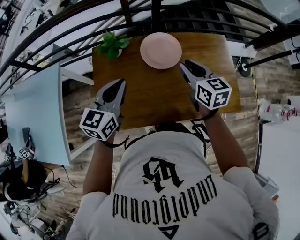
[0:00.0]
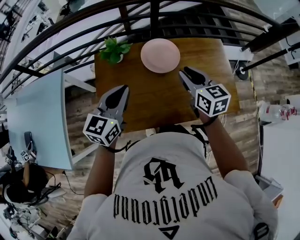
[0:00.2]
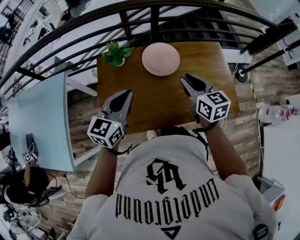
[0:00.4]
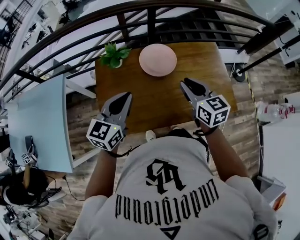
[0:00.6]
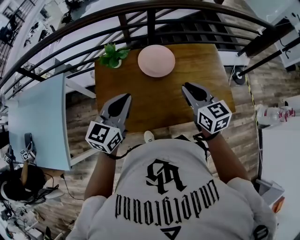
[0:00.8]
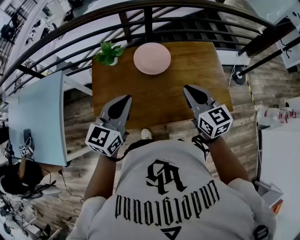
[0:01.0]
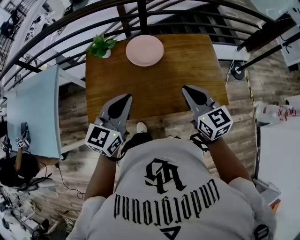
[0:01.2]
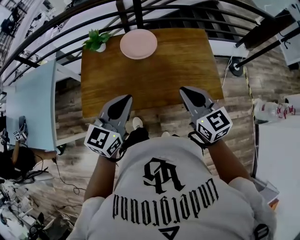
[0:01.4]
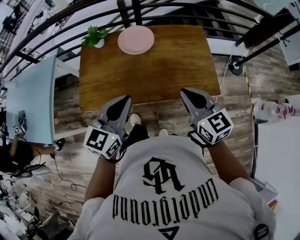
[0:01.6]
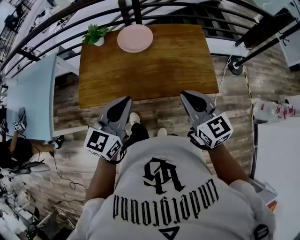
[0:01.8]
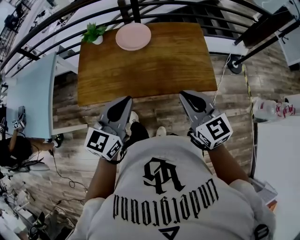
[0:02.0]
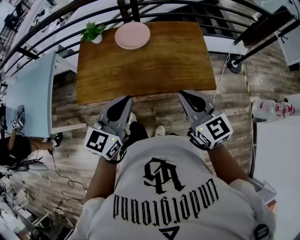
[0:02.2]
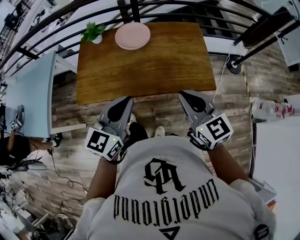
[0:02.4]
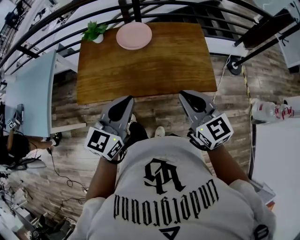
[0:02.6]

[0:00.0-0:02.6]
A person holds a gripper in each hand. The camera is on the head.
0:00.0 to 0:01.2: The two grippers go some 20 cm backward and to the right. The right gripper closes.
0:01.2 to 0:02.6: The two grippers go about 15 cm backward and to the right.

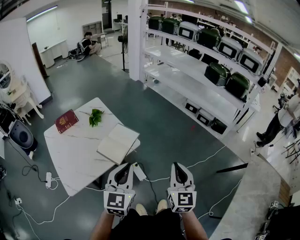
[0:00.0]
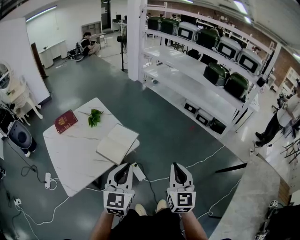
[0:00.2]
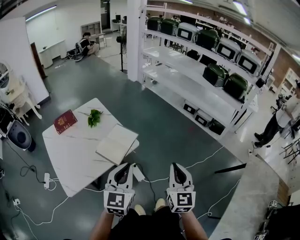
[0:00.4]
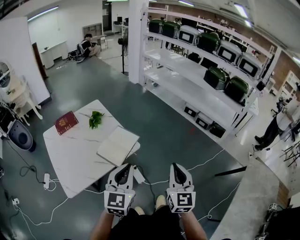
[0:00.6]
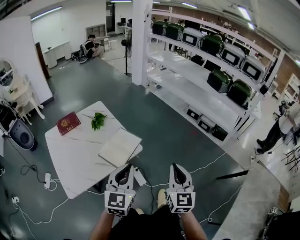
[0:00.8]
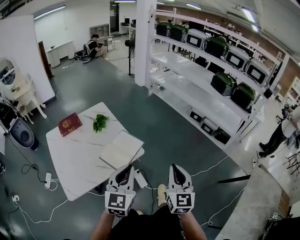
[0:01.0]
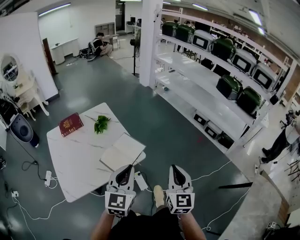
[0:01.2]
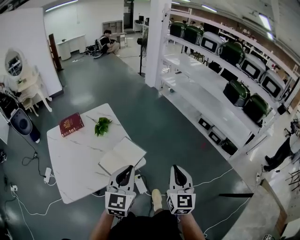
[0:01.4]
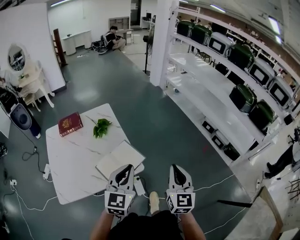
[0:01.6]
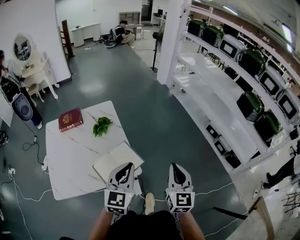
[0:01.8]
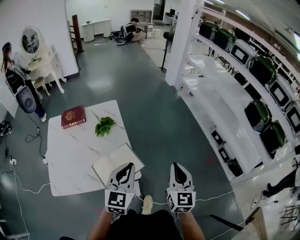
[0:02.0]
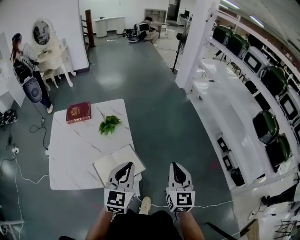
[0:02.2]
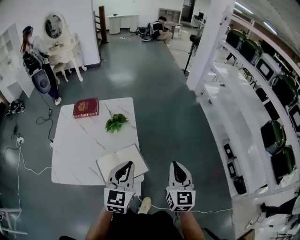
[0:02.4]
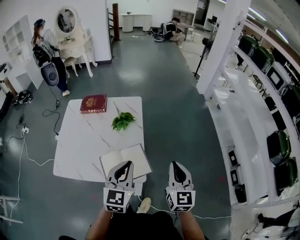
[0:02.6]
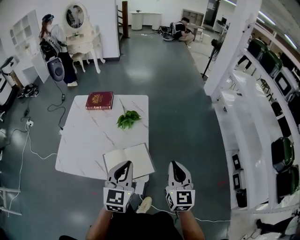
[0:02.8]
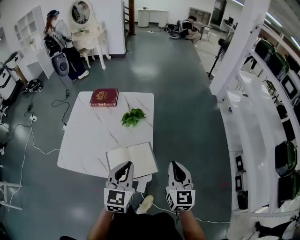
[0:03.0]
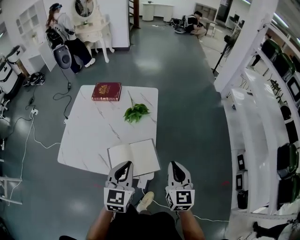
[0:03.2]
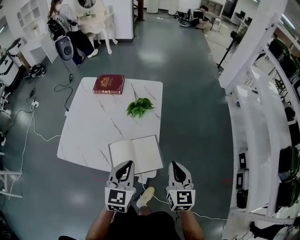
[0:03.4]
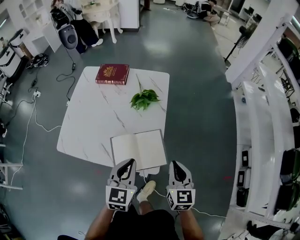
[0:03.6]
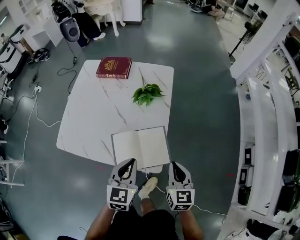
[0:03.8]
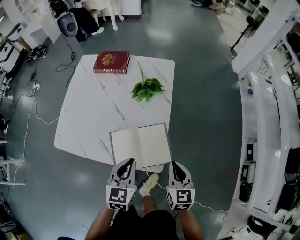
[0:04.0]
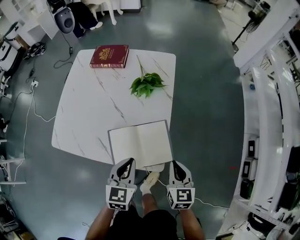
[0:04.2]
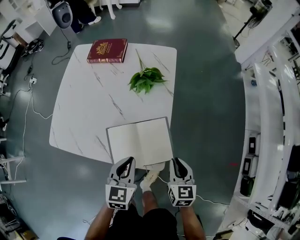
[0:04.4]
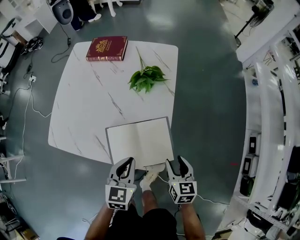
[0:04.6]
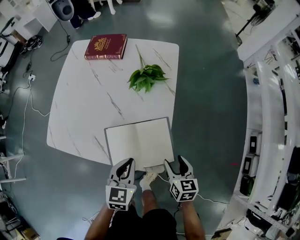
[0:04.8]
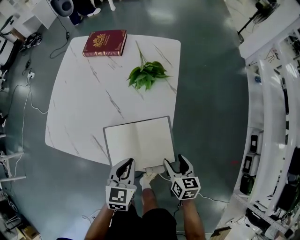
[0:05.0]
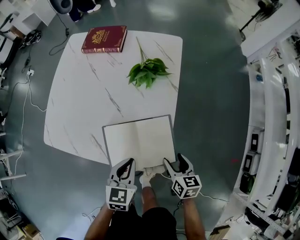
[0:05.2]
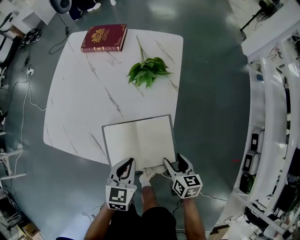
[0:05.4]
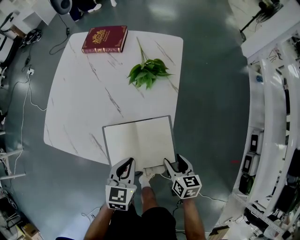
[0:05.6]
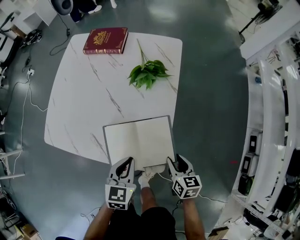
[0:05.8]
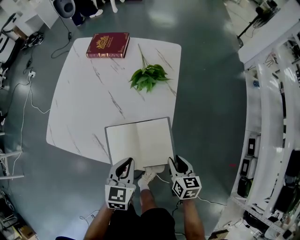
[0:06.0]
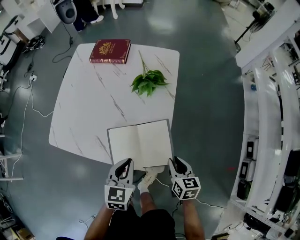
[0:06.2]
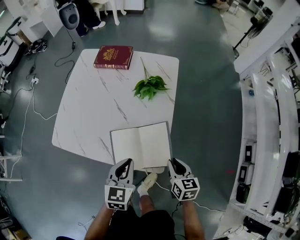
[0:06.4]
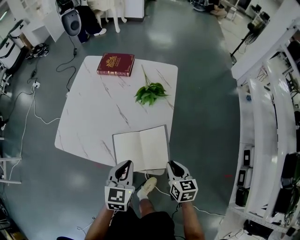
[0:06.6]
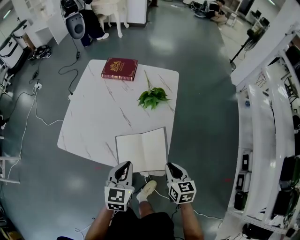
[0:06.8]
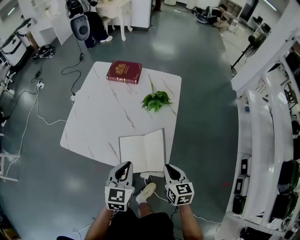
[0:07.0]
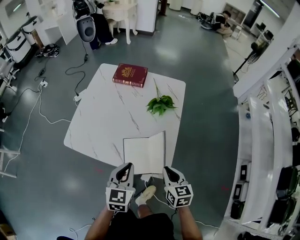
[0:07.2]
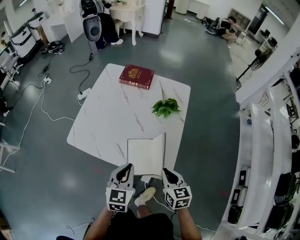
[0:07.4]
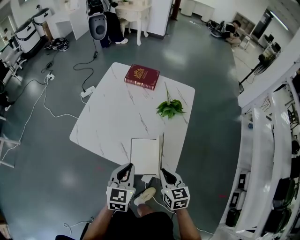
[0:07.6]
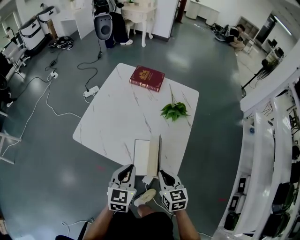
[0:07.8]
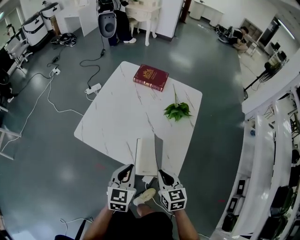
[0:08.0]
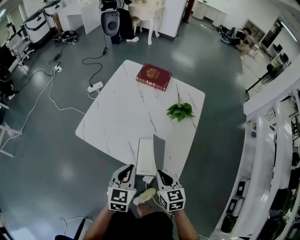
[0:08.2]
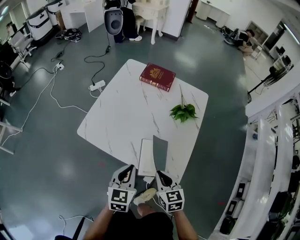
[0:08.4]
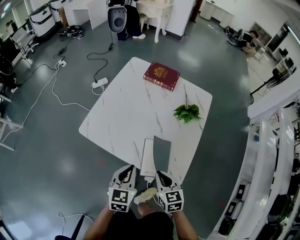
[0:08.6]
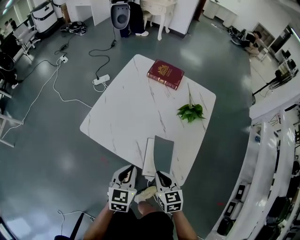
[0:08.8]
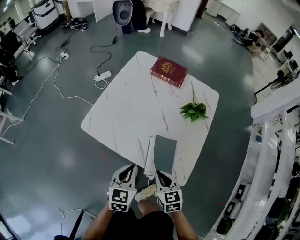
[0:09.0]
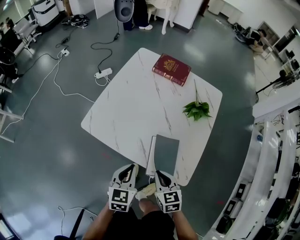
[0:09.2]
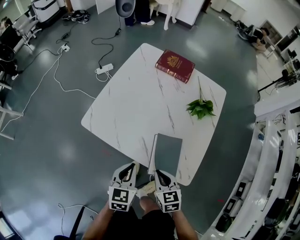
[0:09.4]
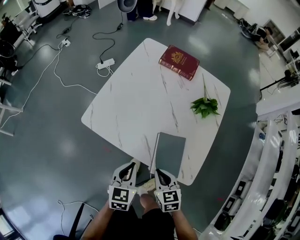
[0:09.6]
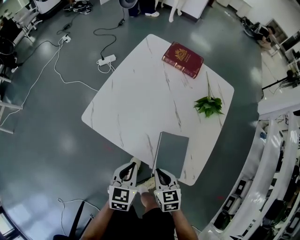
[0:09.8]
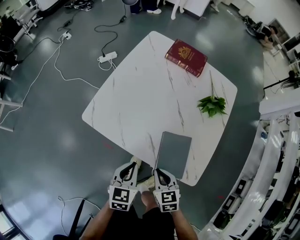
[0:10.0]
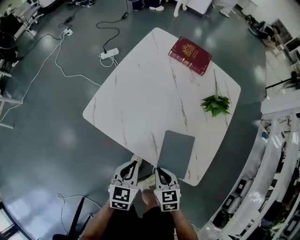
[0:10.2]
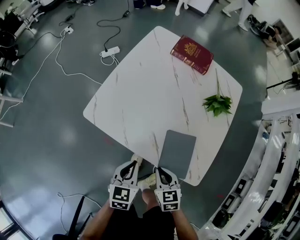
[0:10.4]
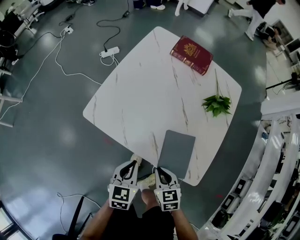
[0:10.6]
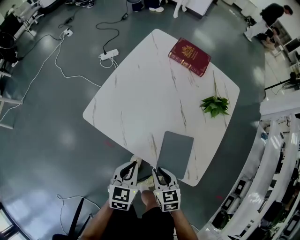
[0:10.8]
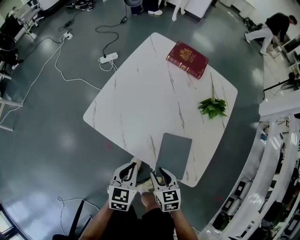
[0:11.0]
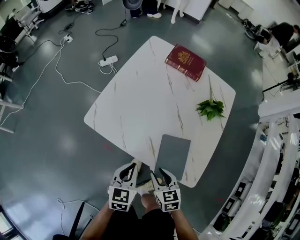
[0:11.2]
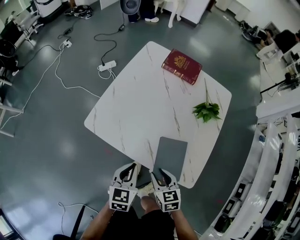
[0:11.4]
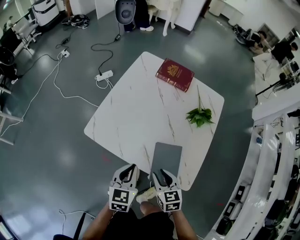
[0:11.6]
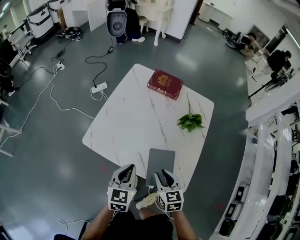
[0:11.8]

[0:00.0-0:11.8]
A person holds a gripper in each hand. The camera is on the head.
0:00.0 to 0:01.4: Both grippers move forward, some 15 cm.
0:01.4 to 0:03.0: The left gripper ends up approximately 20 cm from where it was, and changes its angle by roughly 40 degrees, while the right gripper shifts by some 30 cm, and rotates roughly 40 degrees.
0:03.0 to 0:04.4: The two grippers go about 20 cm downward. The right gripper turns by some 20 degrees.
0:04.4 to 0:06.0: The right gripper goes roughly 5 cm downward, and opens up.
0:06.0 to 0:07.4: Both grippers travel together upward and to the left, approximately 15 cm. The right gripper closes up.
0:07.4 to 0:08.8: Both grippers travel together to the left, approximately 10 cm.
0:08.8 to 0:10.4: Both grippers move downward and to the left, approximately 10 cm.
0:10.4 to 0:11.8: The right gripper shifts roughly 15 cm upward and to the right, and opens up. Meanwhile the left gripper goes approximately 15 cm upward.

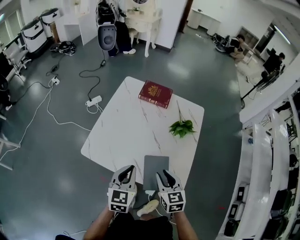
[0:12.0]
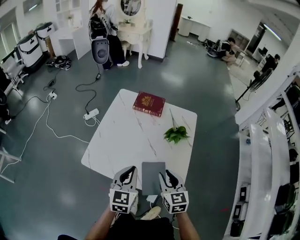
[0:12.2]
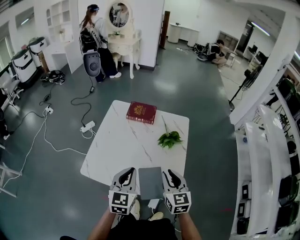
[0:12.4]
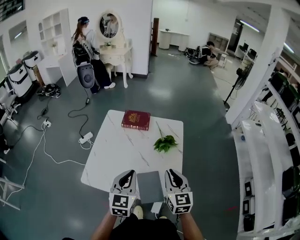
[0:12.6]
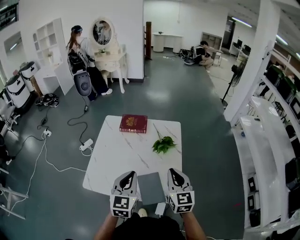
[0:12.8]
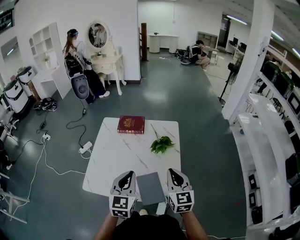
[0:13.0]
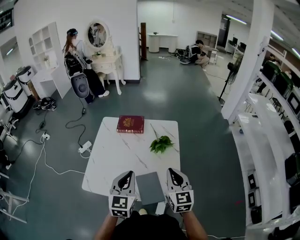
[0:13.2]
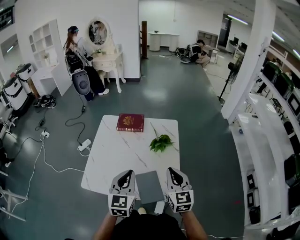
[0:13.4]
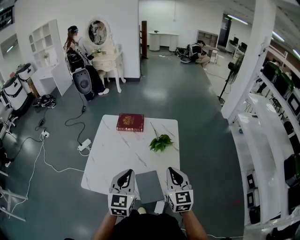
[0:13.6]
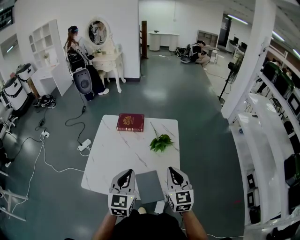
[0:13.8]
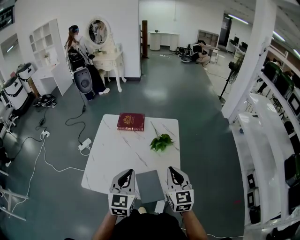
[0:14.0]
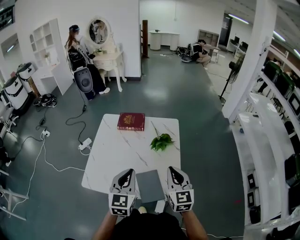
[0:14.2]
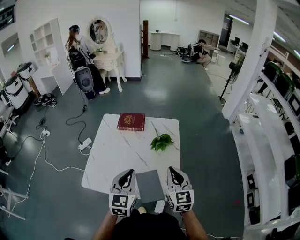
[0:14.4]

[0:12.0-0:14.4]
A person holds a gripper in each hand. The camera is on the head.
0:12.0 to 0:13.2: Both grippers travel together upward and to the right, about 15 cm. The right gripper changes its angle by about 30 degrees, and closes.
0:13.2 to 0:14.4: The two grippers keep their place.

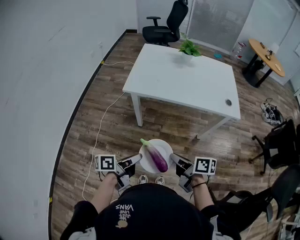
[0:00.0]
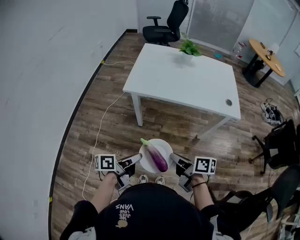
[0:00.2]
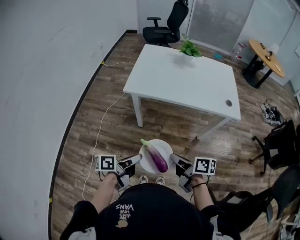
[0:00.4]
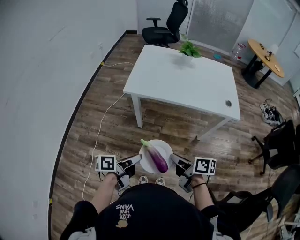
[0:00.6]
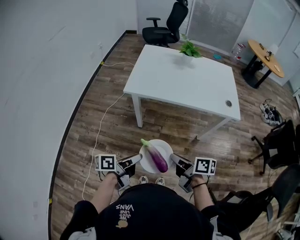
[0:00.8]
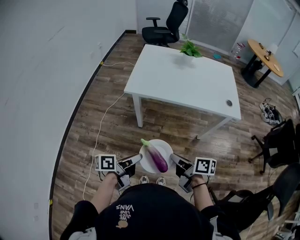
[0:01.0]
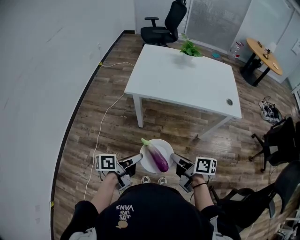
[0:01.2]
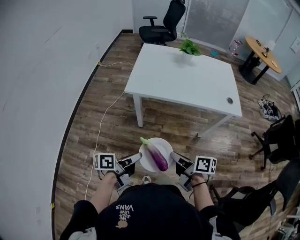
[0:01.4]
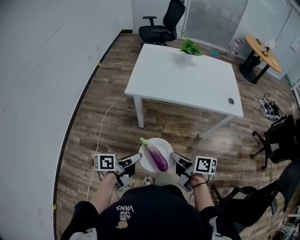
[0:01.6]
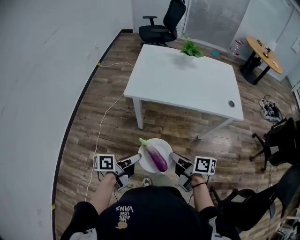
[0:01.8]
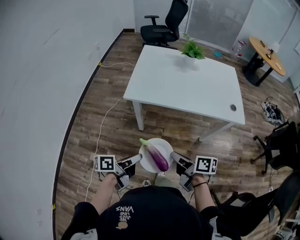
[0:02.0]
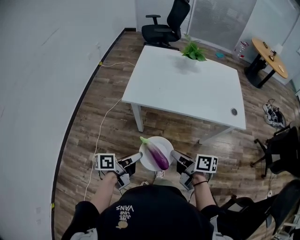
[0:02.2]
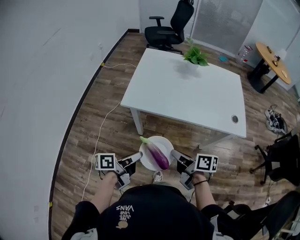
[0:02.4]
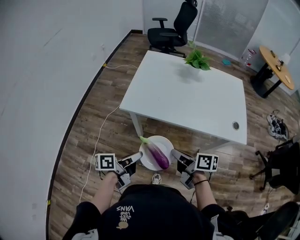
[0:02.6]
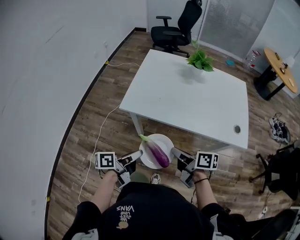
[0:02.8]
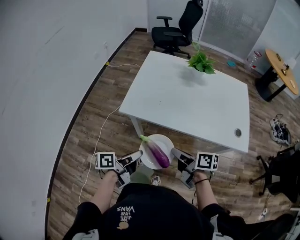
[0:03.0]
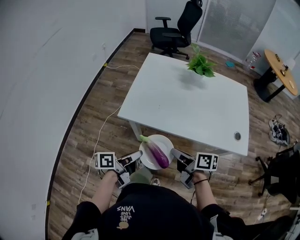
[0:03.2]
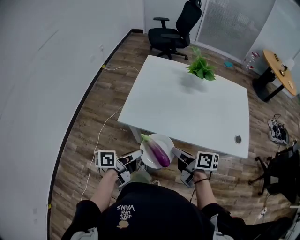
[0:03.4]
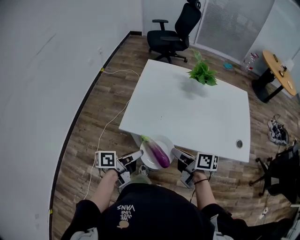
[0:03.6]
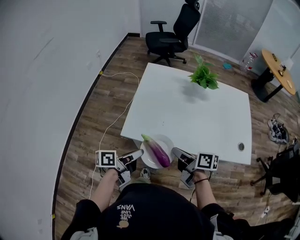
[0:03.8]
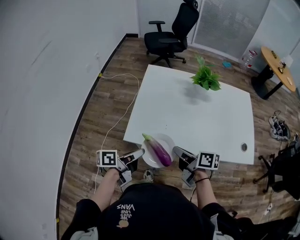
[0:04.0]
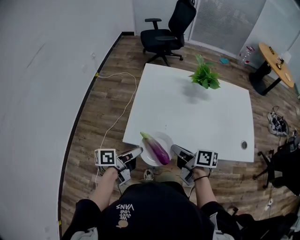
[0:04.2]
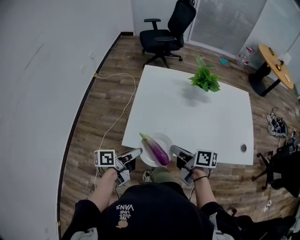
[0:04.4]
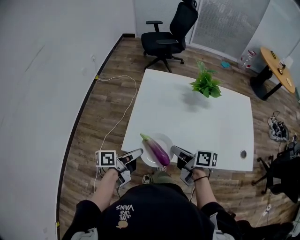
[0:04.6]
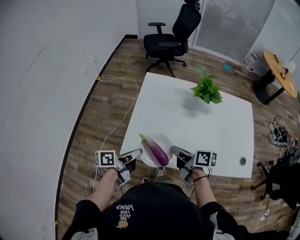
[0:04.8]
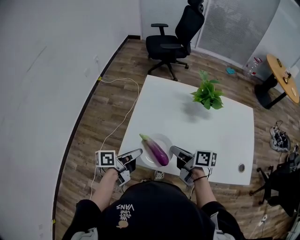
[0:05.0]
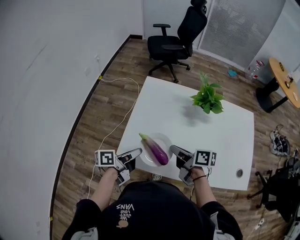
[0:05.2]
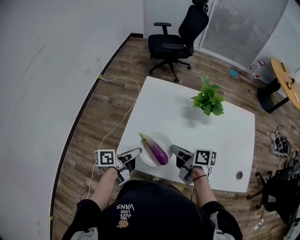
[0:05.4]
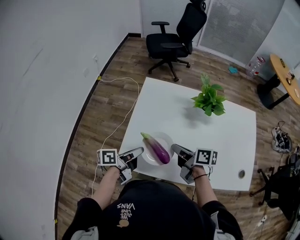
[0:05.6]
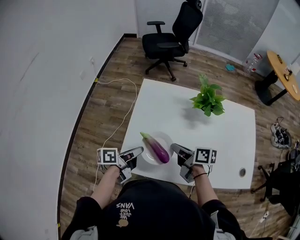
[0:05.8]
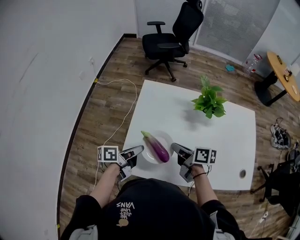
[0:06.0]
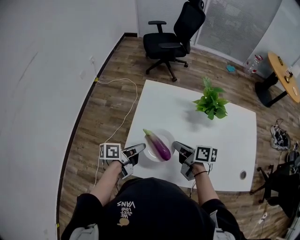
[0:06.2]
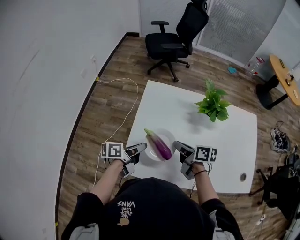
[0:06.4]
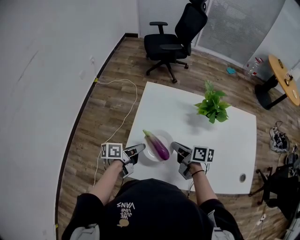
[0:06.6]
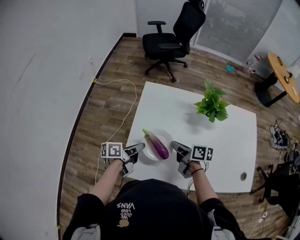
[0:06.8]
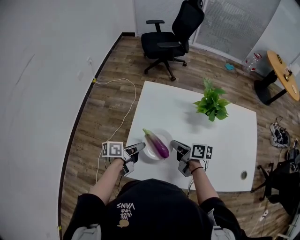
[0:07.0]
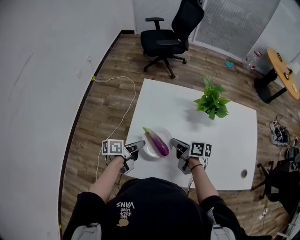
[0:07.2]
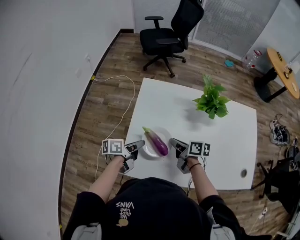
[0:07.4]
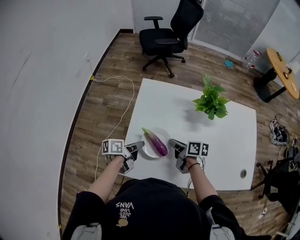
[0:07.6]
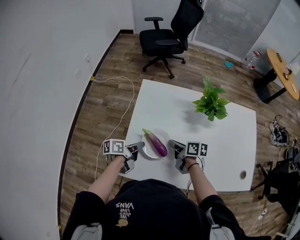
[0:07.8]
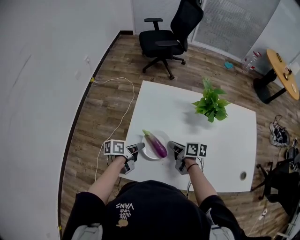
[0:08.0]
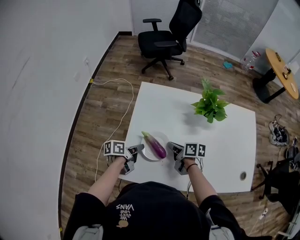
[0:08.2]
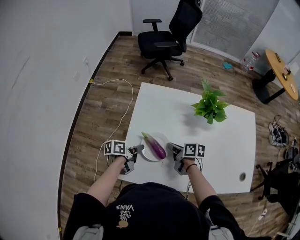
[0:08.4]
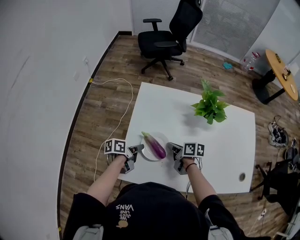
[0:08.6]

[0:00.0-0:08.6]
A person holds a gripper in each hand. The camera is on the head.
0:00.0 to 0:01.4: The grippers make only small movements.
0:01.4 to 0:02.8: Both grippers move forward, roughly 20 cm.
0:02.8 to 0:04.4: The two grippers go some 20 cm forward.
0:04.4 to 0:05.8: The grippers both shift forward by some 15 cm.
0:05.8 to 0:07.2: The right gripper is displaced downward and forward by approximately 10 cm. The left gripper travels forward and downward by roughly 10 cm.
0:07.2 to 0:08.6: Both grippers travel together downward, some 5 cm.
